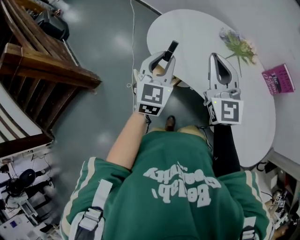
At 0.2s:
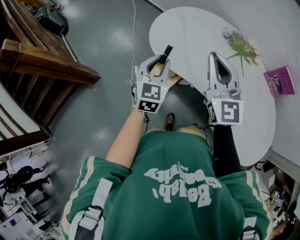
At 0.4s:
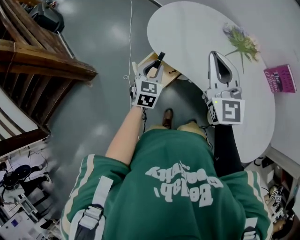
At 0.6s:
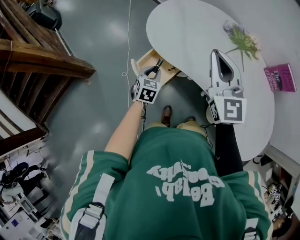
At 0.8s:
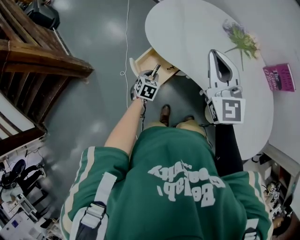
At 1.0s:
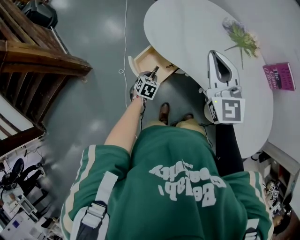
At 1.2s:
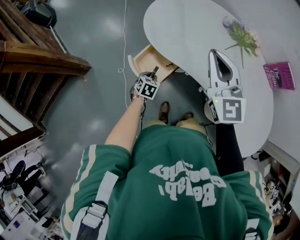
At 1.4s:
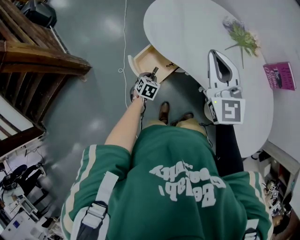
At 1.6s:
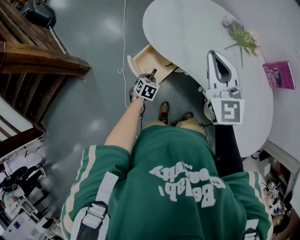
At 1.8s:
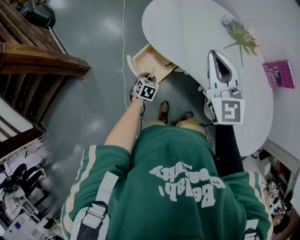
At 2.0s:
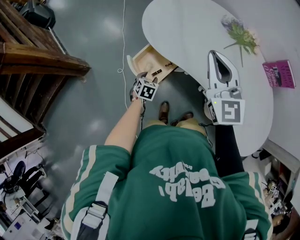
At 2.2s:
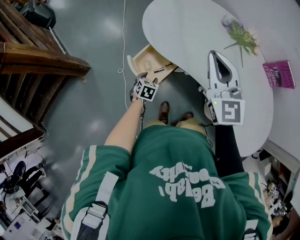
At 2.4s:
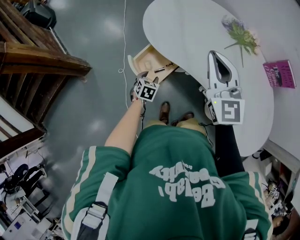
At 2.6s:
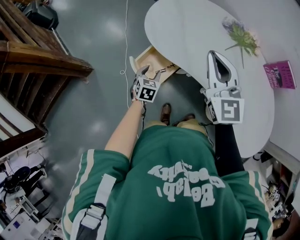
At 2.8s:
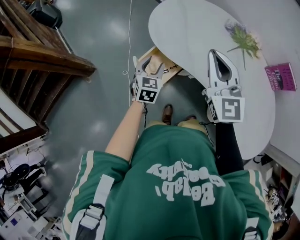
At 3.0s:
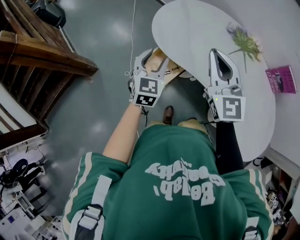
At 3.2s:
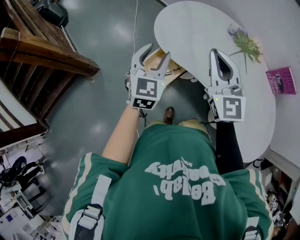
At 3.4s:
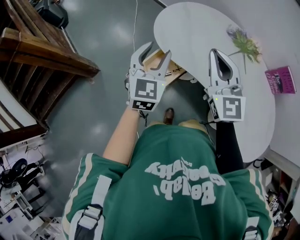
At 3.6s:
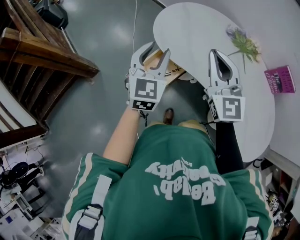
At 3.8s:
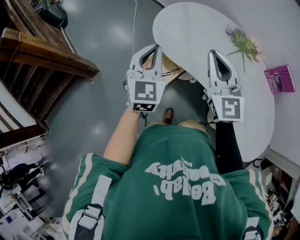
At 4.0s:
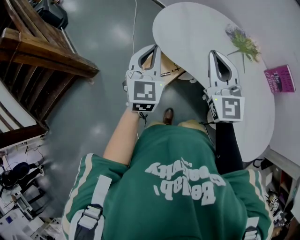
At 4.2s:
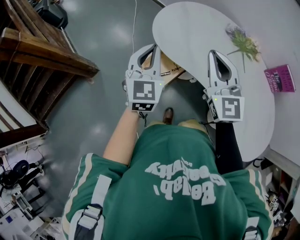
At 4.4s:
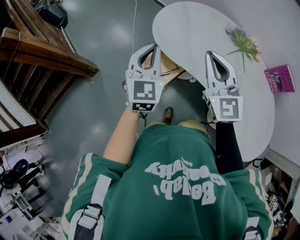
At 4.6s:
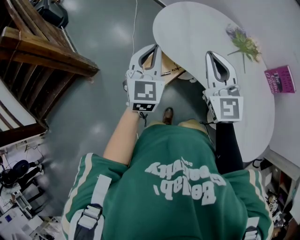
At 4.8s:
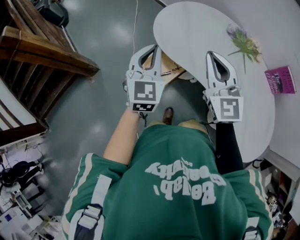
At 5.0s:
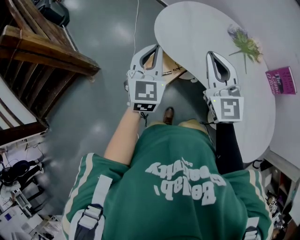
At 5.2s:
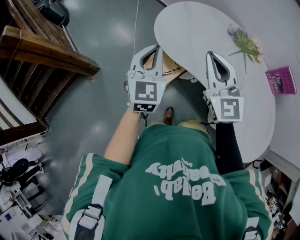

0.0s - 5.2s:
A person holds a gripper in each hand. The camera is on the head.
0.0s - 1.8s: The left gripper moves downward, about 35 cm, and angles its fingers downward, by approximately 40 degrees. Meanwhile the right gripper changes place by some 5 cm.
1.8s - 3.4s: The left gripper shifts approximately 35 cm upward, tilts its fingers approximately 40 degrees upward, and opens its fingers.
3.4s - 5.2s: The left gripper closes.

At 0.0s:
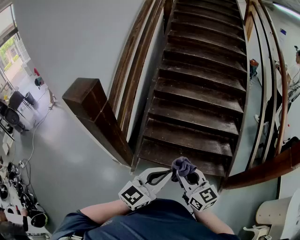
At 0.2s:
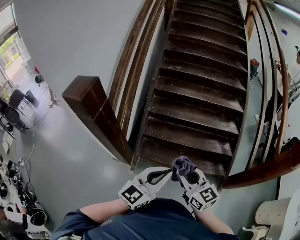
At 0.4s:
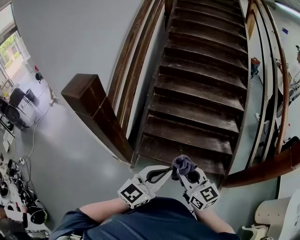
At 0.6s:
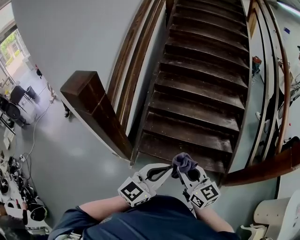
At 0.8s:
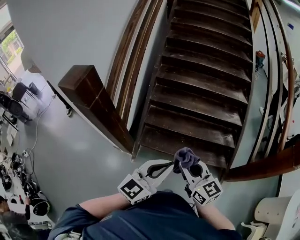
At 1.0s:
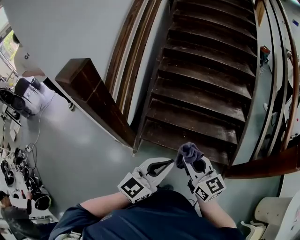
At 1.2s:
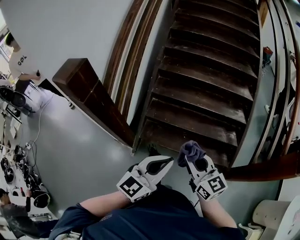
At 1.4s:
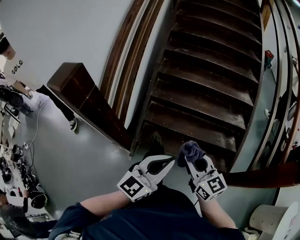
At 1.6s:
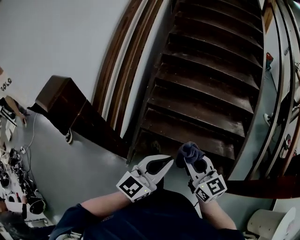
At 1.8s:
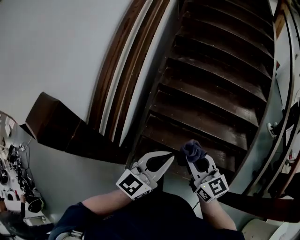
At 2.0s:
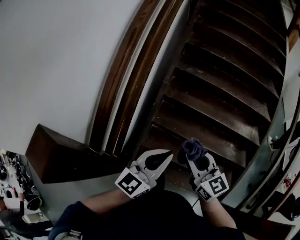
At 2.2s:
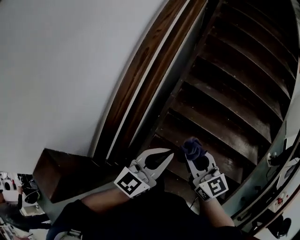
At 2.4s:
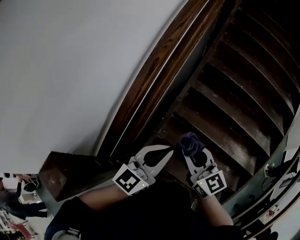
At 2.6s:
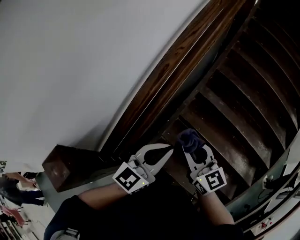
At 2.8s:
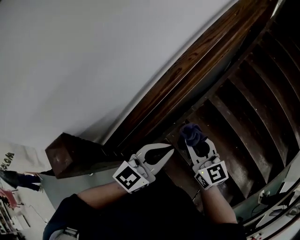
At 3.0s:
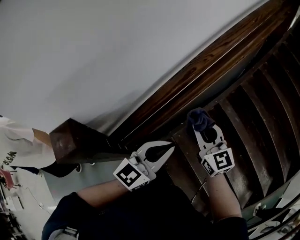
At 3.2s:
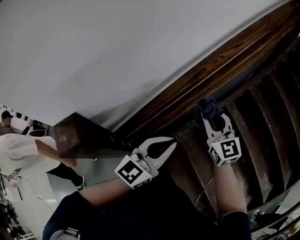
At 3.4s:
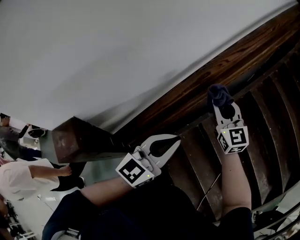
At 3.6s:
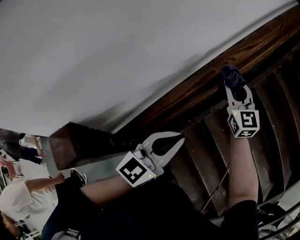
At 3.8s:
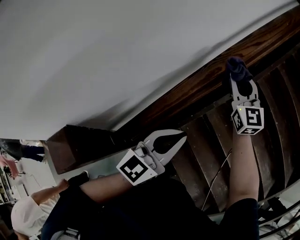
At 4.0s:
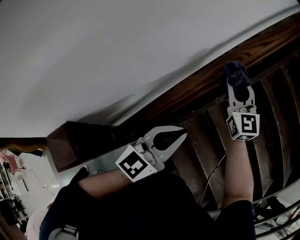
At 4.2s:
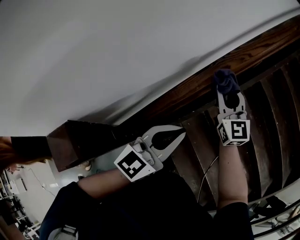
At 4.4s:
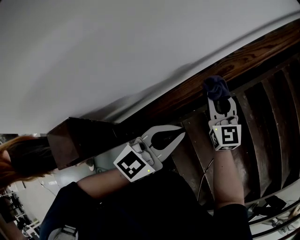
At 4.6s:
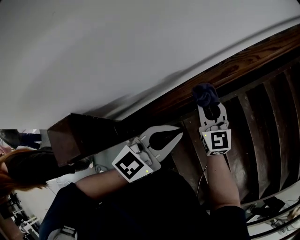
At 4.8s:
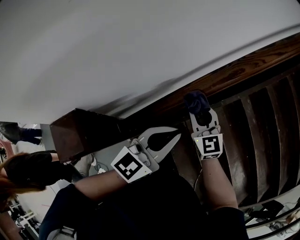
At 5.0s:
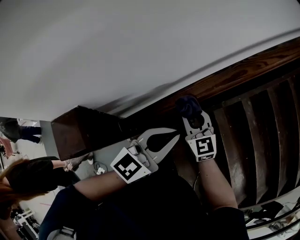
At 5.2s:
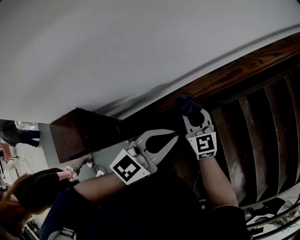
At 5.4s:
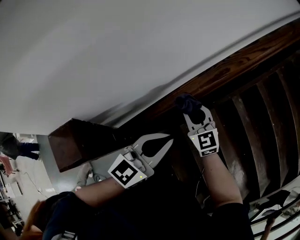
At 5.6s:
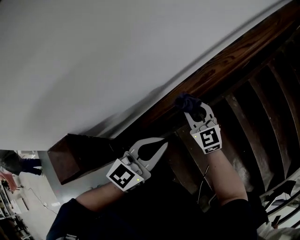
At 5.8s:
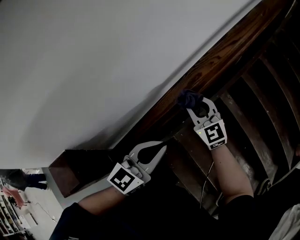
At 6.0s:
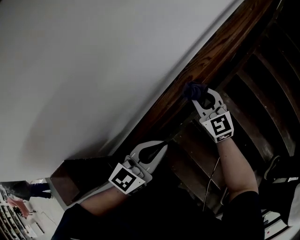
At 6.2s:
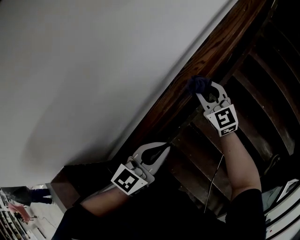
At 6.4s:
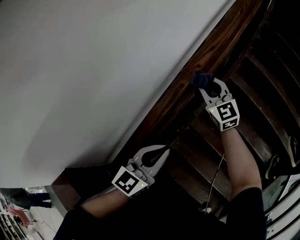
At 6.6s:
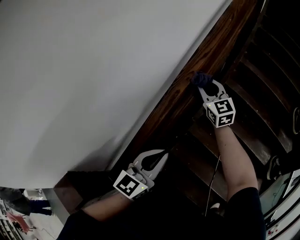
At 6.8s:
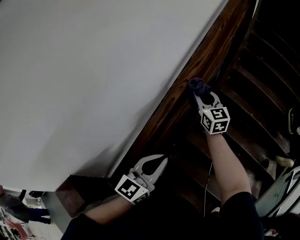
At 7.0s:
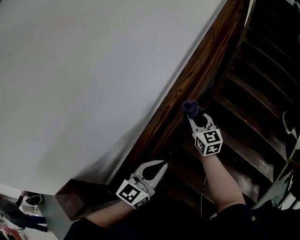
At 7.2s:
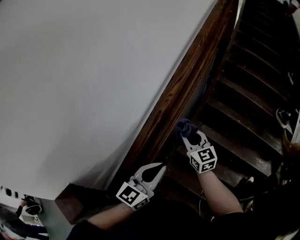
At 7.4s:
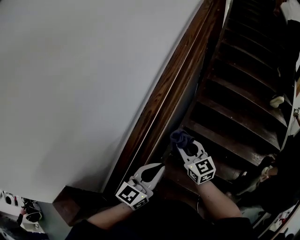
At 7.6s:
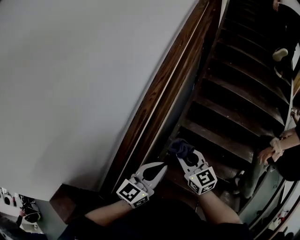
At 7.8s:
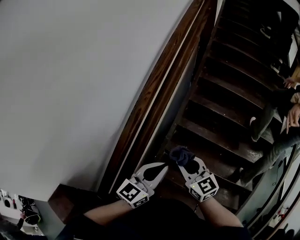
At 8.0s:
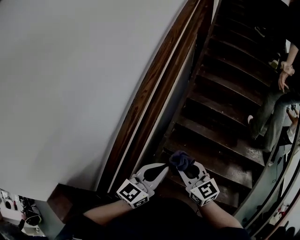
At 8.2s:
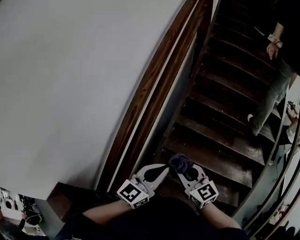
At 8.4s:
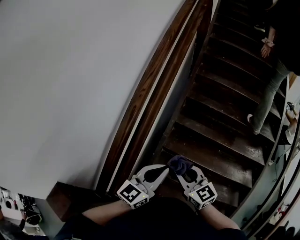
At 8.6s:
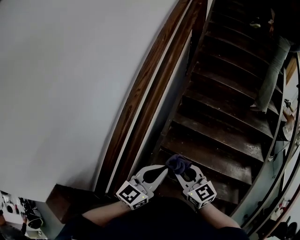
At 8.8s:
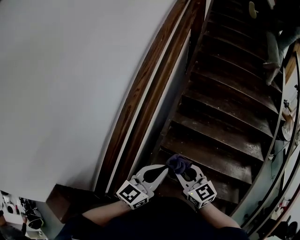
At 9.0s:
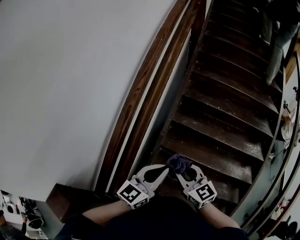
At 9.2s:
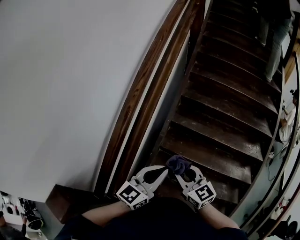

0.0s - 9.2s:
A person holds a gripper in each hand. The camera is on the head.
0.0s - 1.6s: The grippers both shift forward by approximately 15 cm.
1.6s - 3.0s: The pair of grippers is taken about 60 cm. The left gripper changes its angle by roughly 40 degrees; the right gripper turns by approximately 40 degrees.
3.0s - 4.6s: The right gripper moves to the left, forward and downward, about 15 cm; the left gripper travels to the left and forward by about 10 cm.
4.6s - 6.2s: The left gripper travels to the right by roughly 5 cm. The right gripper travels to the right, forward and upward by roughly 20 cm.
6.2s - 7.6s: The right gripper travels backward and to the right by about 25 cm, and rotates approximately 20 degrees. Meanwhile the left gripper shifts roughly 15 cm to the right, backward and upward.
7.6s - 9.2s: The left gripper is displaced to the right by some 5 cm; the right gripper is displaced backward and to the right by some 10 cm.

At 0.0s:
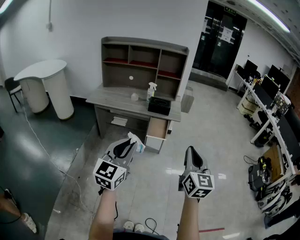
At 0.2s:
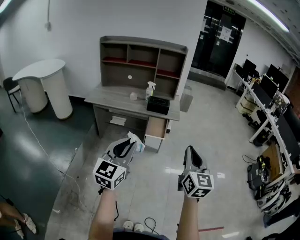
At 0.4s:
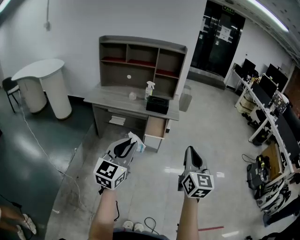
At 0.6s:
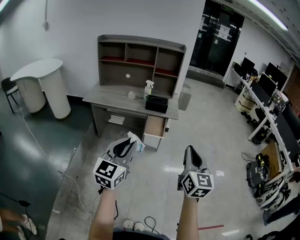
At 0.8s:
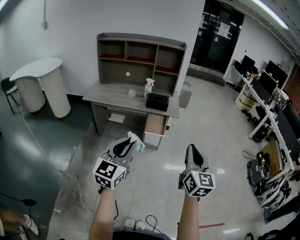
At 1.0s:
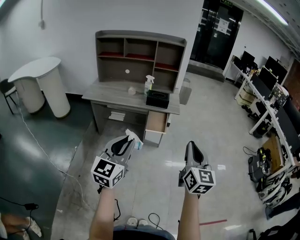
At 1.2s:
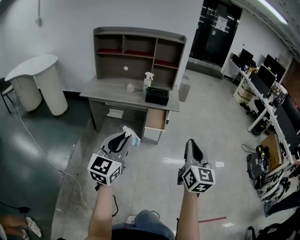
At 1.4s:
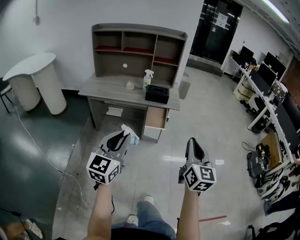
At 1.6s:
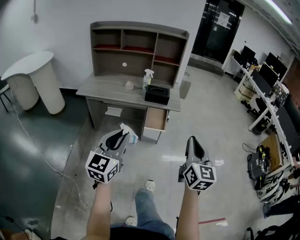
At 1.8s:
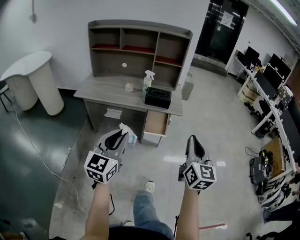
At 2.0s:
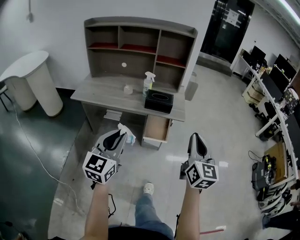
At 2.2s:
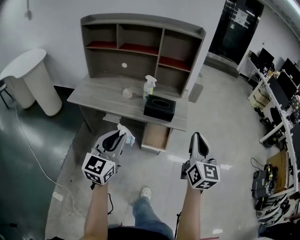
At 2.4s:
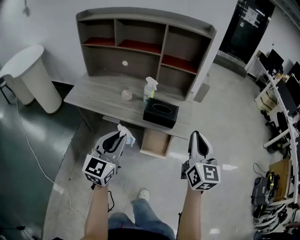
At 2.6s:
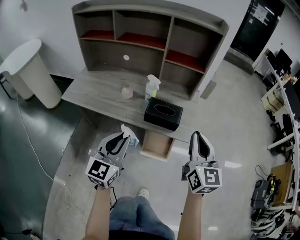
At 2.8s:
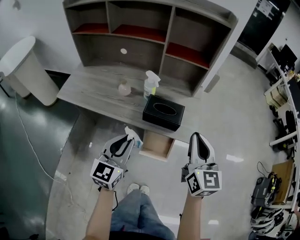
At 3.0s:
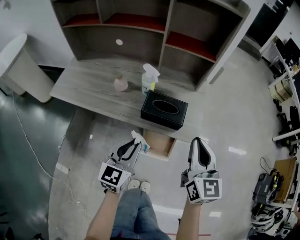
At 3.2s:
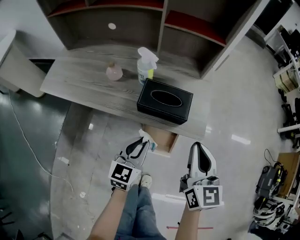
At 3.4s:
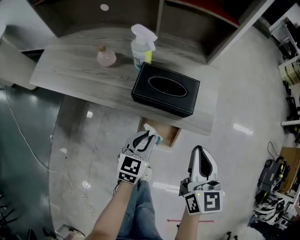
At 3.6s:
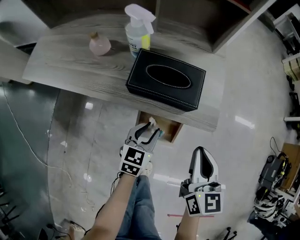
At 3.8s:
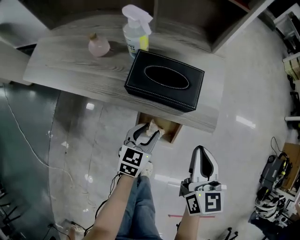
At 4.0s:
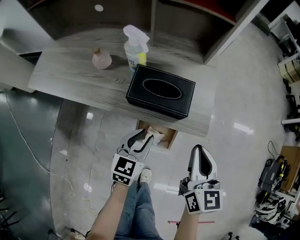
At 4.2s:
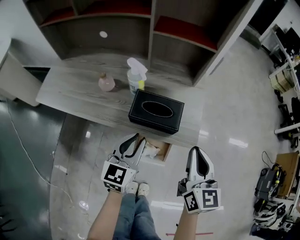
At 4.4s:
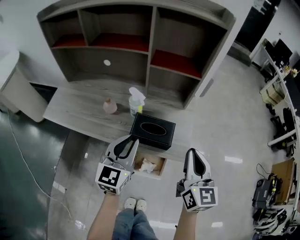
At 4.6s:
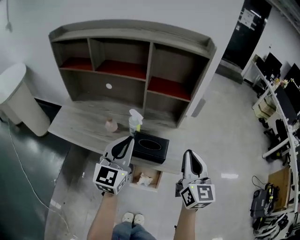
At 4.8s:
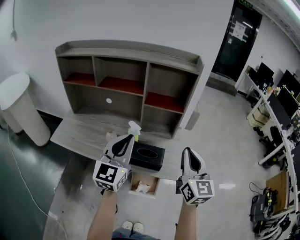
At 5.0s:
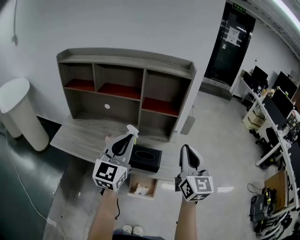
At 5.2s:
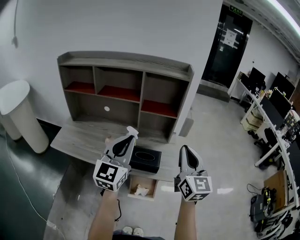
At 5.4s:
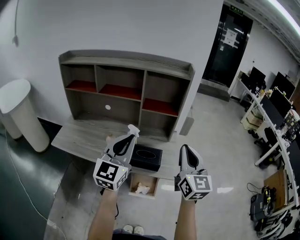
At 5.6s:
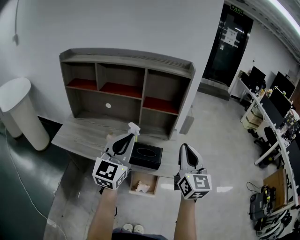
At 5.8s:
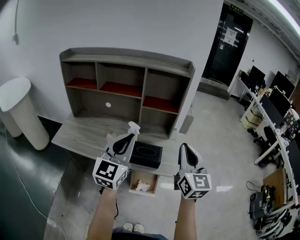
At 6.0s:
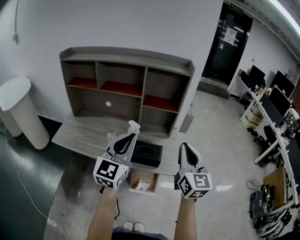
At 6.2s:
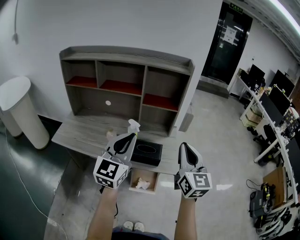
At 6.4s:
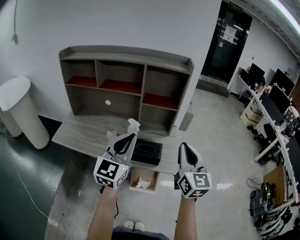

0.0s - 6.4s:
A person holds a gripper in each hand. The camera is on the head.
0.0s - 1.6s: The left gripper shifts about 10 cm forward and to the left. Meanwhile the right gripper moves forward, some 5 cm.
1.6s - 3.2s: The pair of grippers is taken forward, some 50 cm. The left gripper is displaced downward by roughly 30 cm, and turns by some 20 degrees.
3.2s - 4.8s: The right gripper goes approximately 20 cm upward; the left gripper moves upward, some 35 cm, changes its angle by approximately 30 degrees, and opens and closes again.
4.8s - 6.4s: The left gripper goes about 5 cm backward. The right gripper shifts by roughly 5 cm.

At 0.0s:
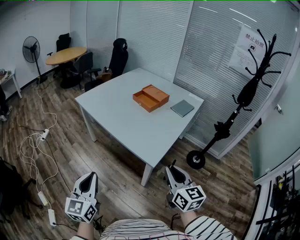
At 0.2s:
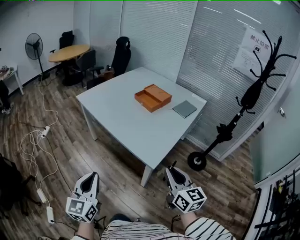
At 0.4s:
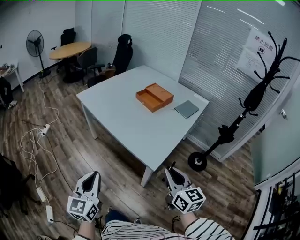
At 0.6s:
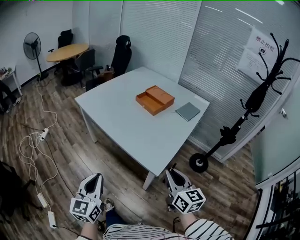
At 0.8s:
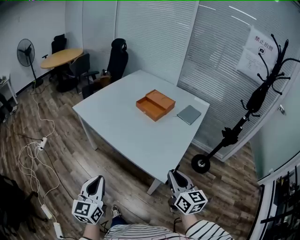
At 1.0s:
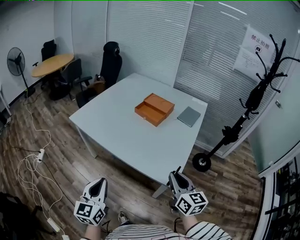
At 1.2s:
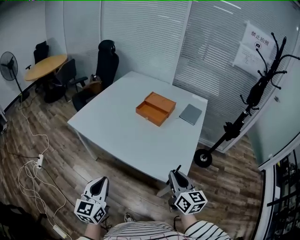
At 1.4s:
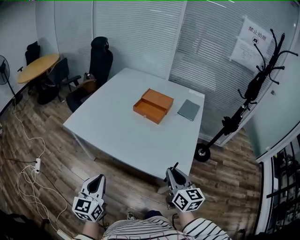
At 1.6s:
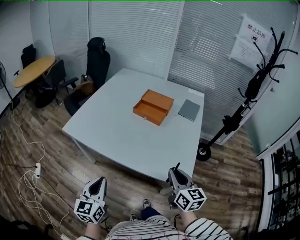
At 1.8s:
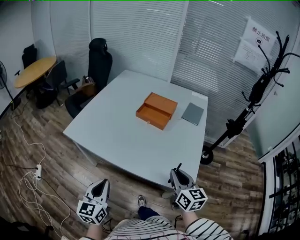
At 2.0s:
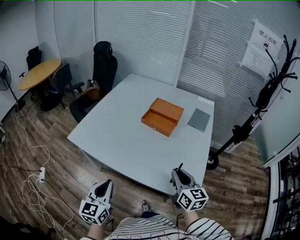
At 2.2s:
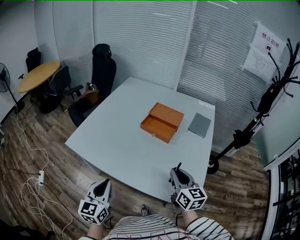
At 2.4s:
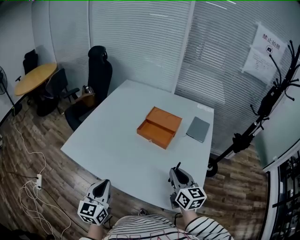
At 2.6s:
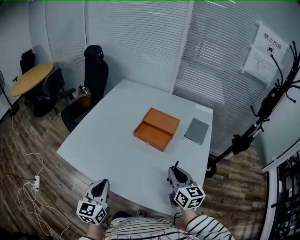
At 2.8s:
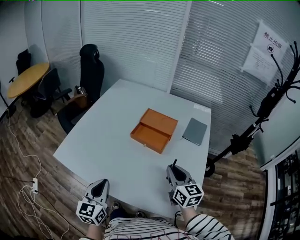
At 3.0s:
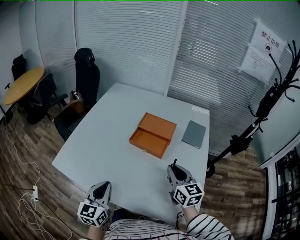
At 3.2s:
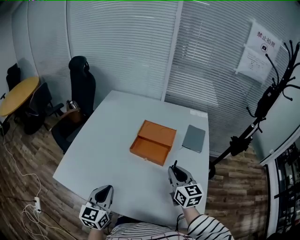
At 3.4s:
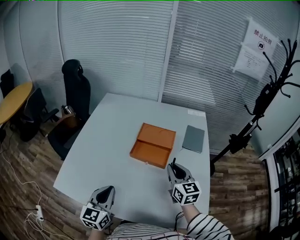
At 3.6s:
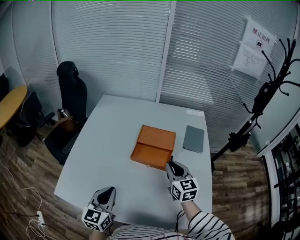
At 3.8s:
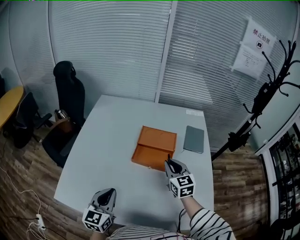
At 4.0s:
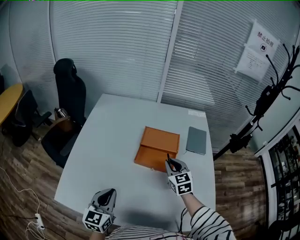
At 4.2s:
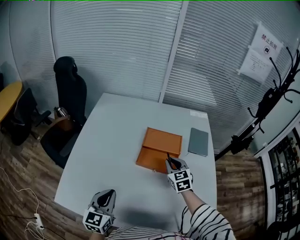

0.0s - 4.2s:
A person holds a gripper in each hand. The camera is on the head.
0.0s - 1.4s: The grippers both shift forward and to the left by roughly 30 cm. The right gripper rotates roughly 20 degrees.
1.4s - 2.8s: Both grippers travel together forward, about 25 cm.
2.8s - 4.2s: The two grippers go approximately 20 cm forward and to the left. The right gripper turns by some 30 degrees.
